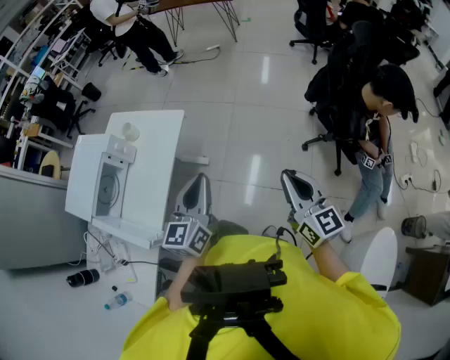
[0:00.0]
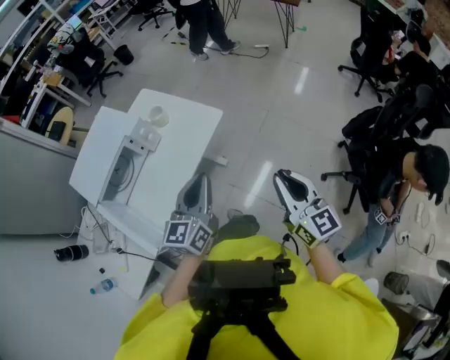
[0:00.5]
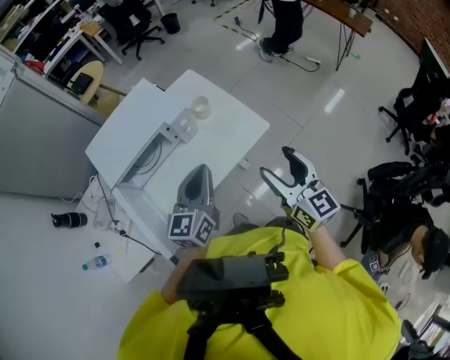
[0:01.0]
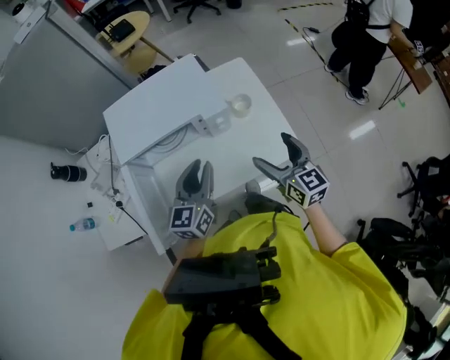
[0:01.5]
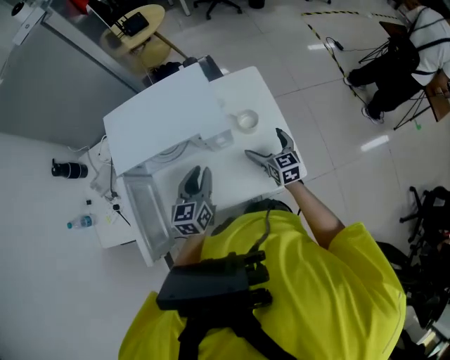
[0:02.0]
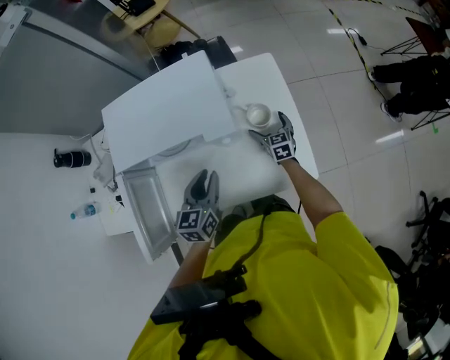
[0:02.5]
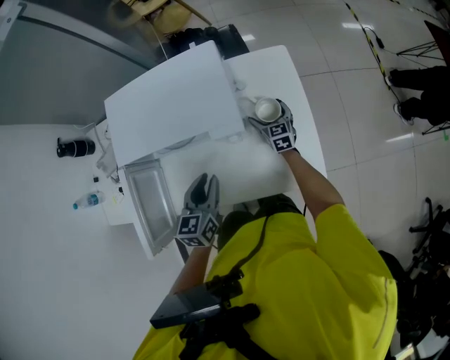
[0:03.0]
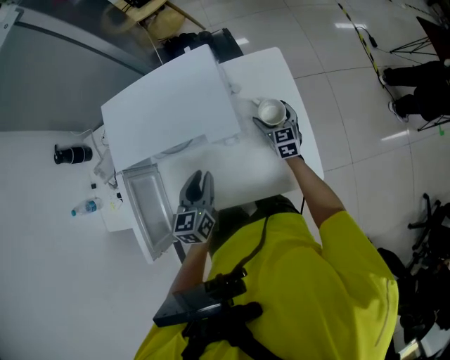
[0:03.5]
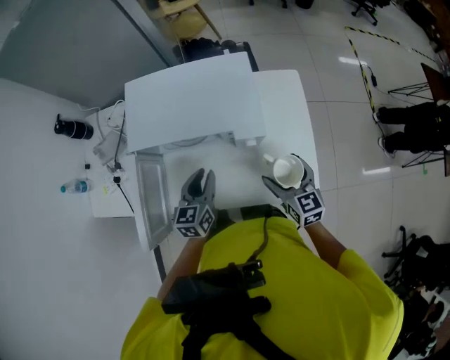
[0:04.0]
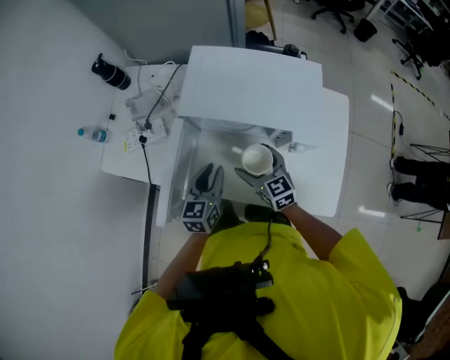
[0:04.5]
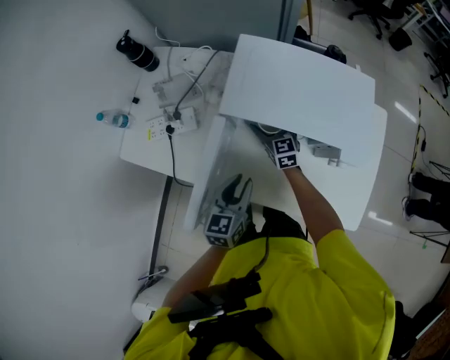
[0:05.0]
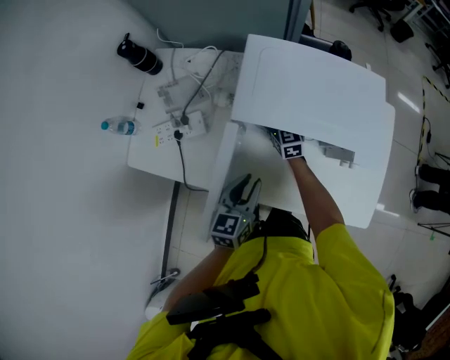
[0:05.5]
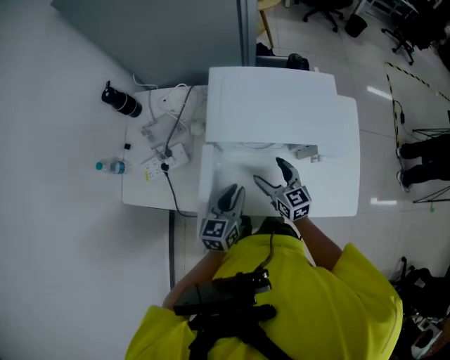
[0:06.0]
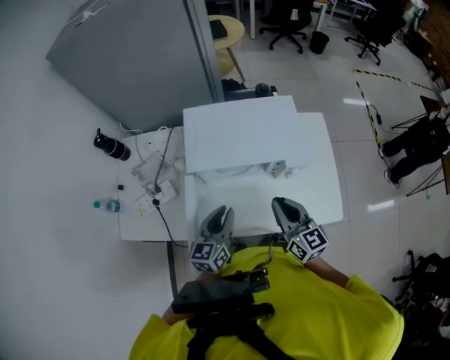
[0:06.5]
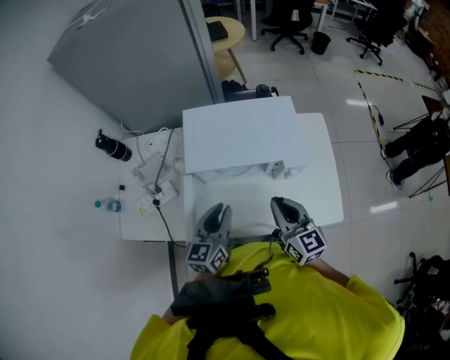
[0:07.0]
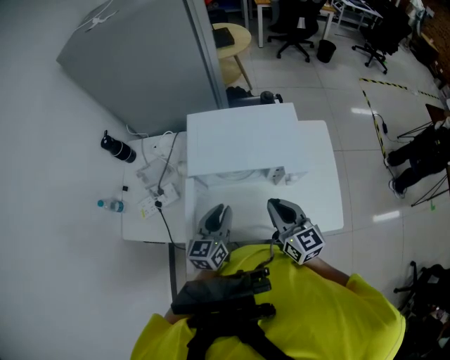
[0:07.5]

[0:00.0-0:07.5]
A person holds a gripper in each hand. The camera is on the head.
0:00.0 to 0:02.0: The two grippers travel together, about 60 cm. The left gripper rotates some 60 degrees, and opens up; the right gripper swivels approximately 60 degrees, and opens.
0:02.0 to 0:04.0: The two grippers go roughly 5 cm to the left. The right gripper reaches some 15 cm downward, then returns.
0:04.0 to 0:05.5: The left gripper shifts roughly 15 cm to the left. Meanwhile the right gripper shifts roughly 50 cm to the left, forward and downward.
0:05.5 to 0:07.5: The right gripper moves upward, backward and to the right, approximately 40 cm, and closes its fingers; the left gripper travels upward by some 10 cm.

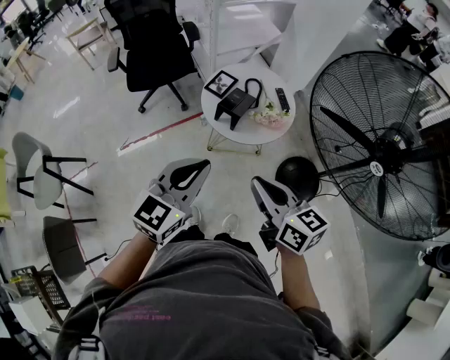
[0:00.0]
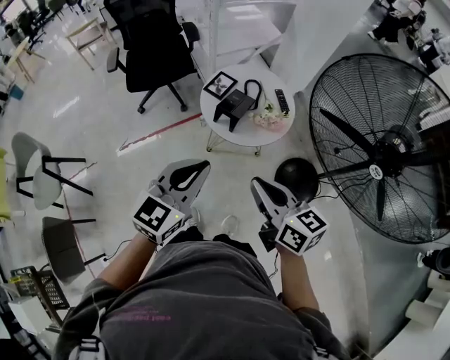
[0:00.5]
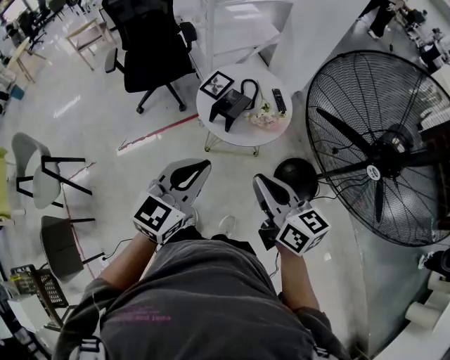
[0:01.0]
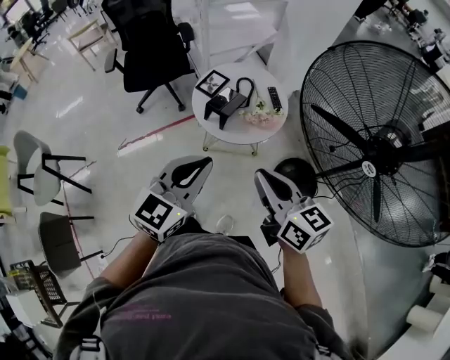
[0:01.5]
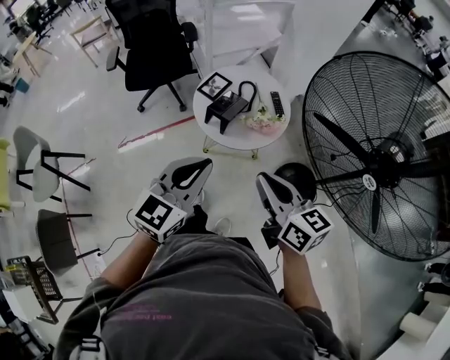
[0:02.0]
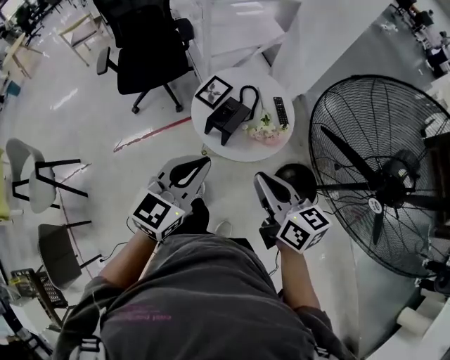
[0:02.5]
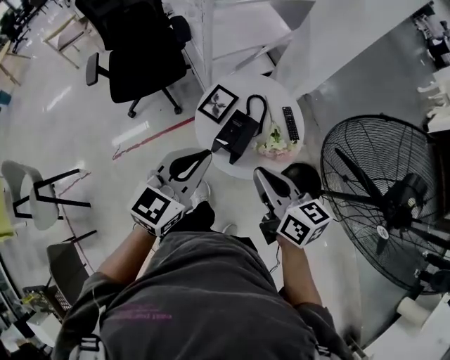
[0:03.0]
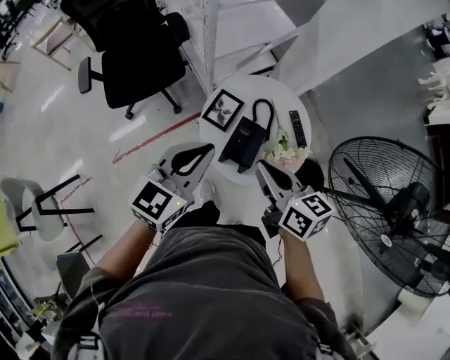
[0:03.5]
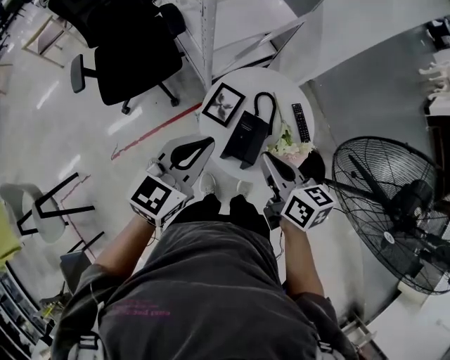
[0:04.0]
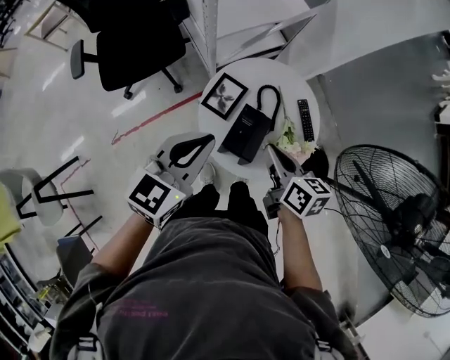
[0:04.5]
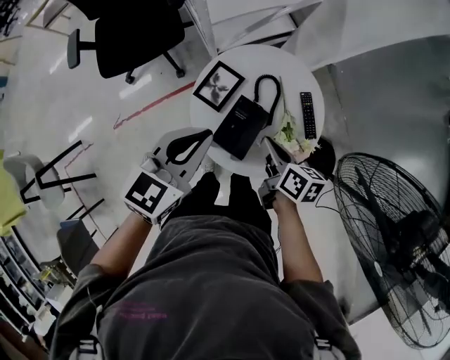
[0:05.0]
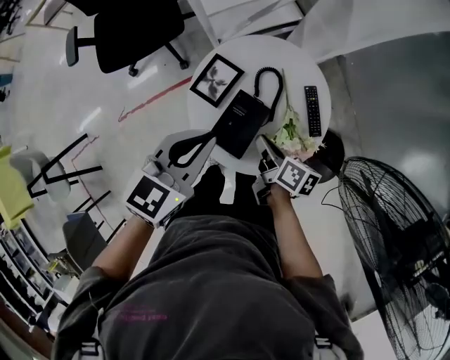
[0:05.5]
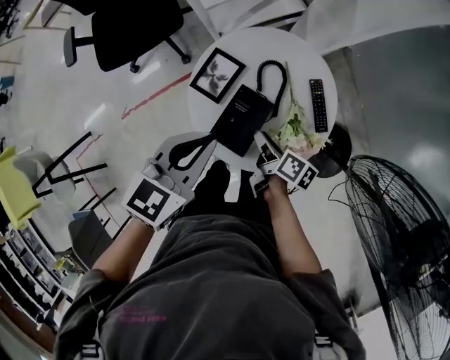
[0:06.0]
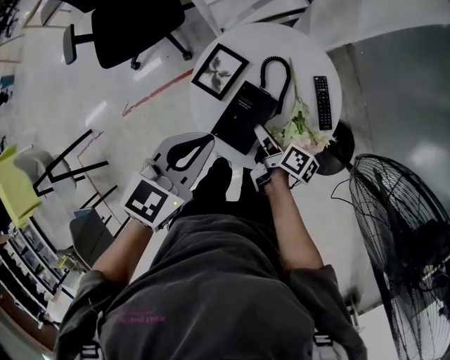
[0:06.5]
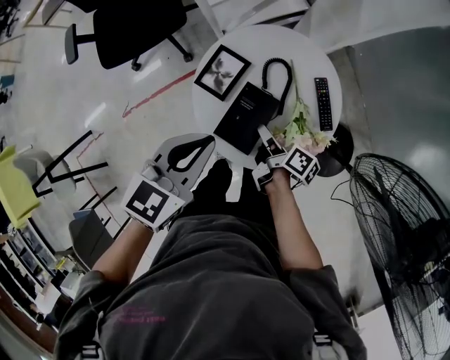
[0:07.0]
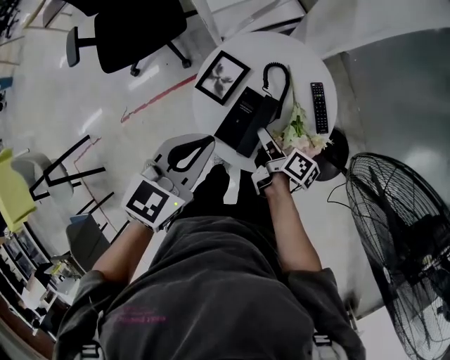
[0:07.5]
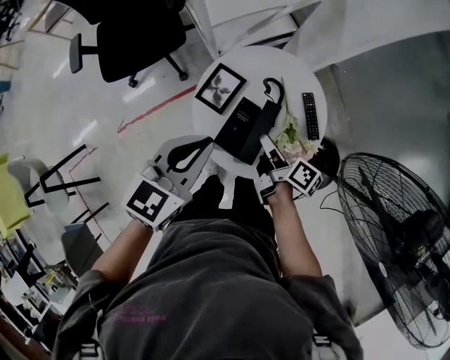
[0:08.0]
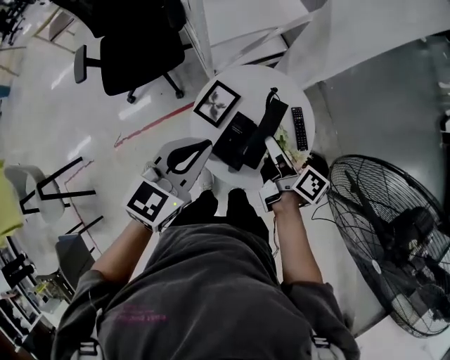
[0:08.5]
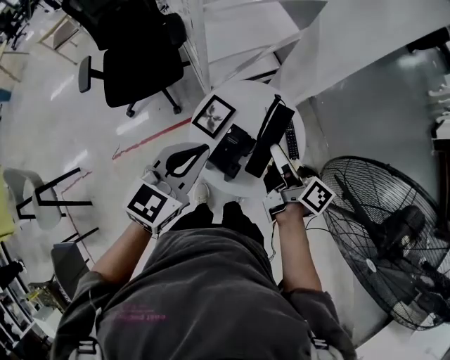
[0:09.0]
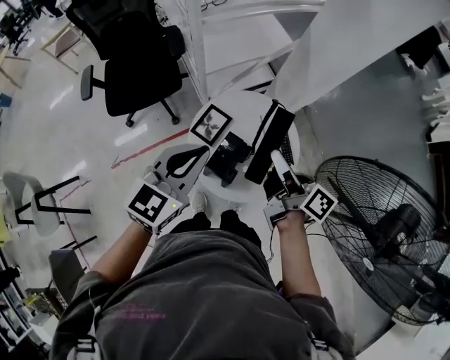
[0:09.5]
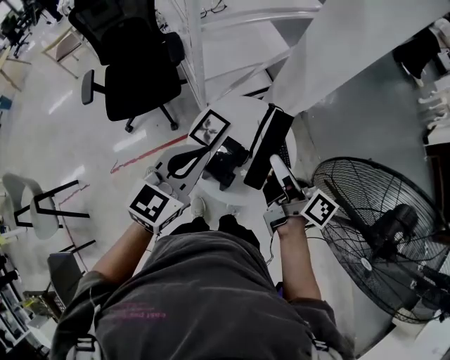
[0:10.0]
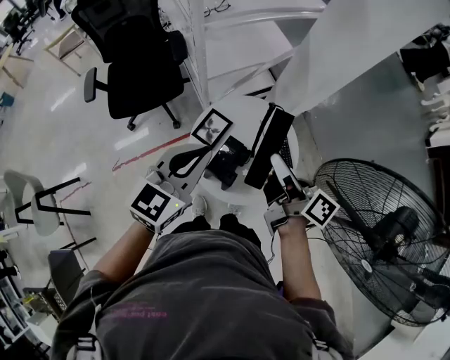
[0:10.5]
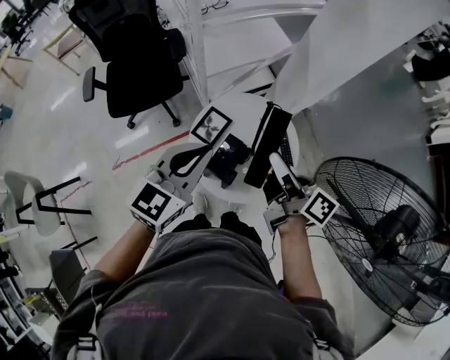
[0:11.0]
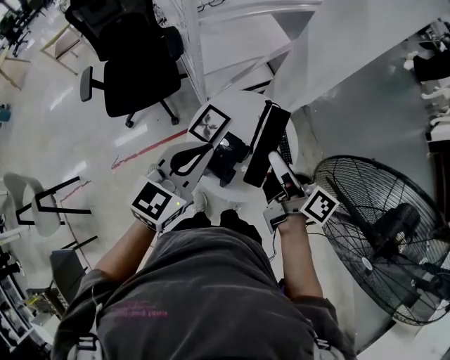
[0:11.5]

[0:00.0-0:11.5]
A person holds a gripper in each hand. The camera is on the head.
0:00.0 to 0:02.0: Both grippers travel together to the right, some 10 cm.
0:02.0 to 0:04.0: The two grippers go approximately 35 cm forward and to the left. The right gripper rotates approximately 20 degrees.
0:04.0 to 0:06.0: The right gripper heads downward, covering approximately 25 cm, and twists approximately 40 degrees clockwise, seen from behind, while the left gripper is displaced downward and to the right by about 15 cm, and turns by some 20 degrees.
0:06.0 to 0:07.5: The grippers move only a little.
0:07.5 to 0:09.5: The left gripper travels upward by roughly 15 cm, and swivels approximately 20 degrees. Meanwhile the right gripper moves upward, roughly 30 cm, and swivels approximately 30 degrees.
0:09.5 to 0:11.5: The grippers stay close to where they were, moving slightly.

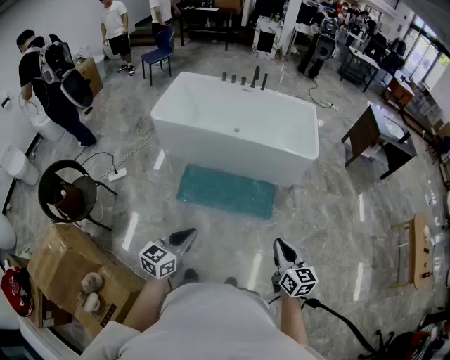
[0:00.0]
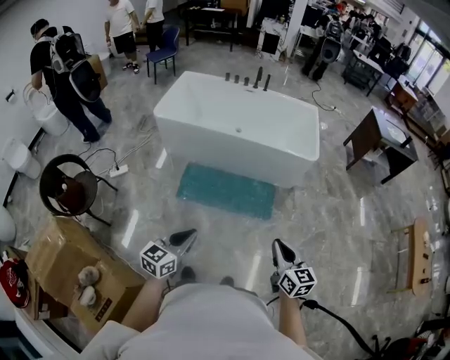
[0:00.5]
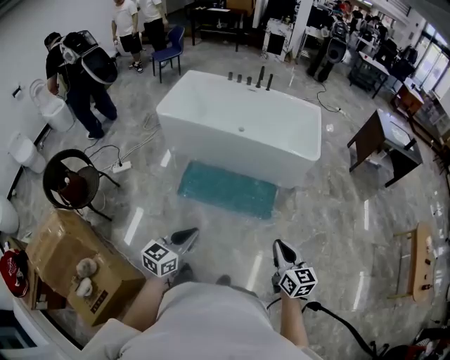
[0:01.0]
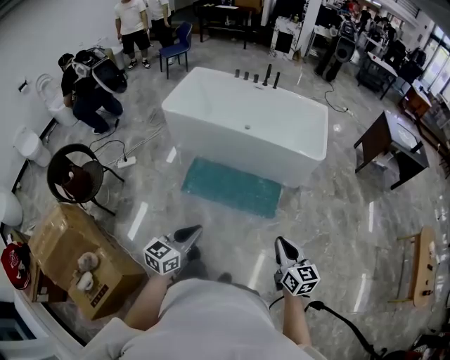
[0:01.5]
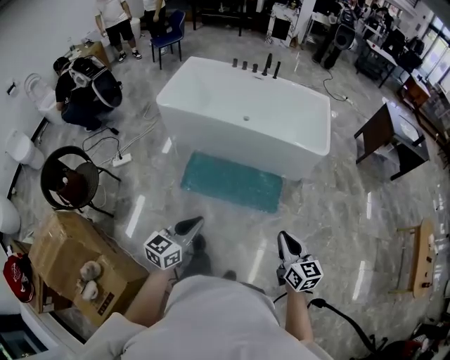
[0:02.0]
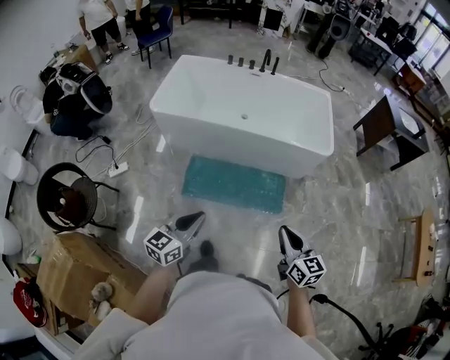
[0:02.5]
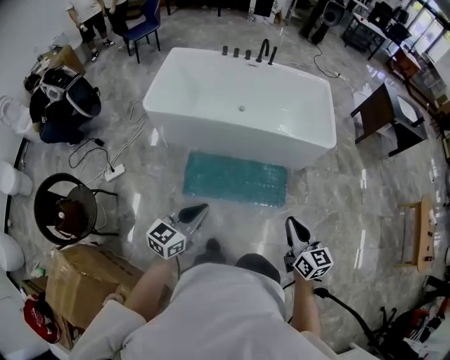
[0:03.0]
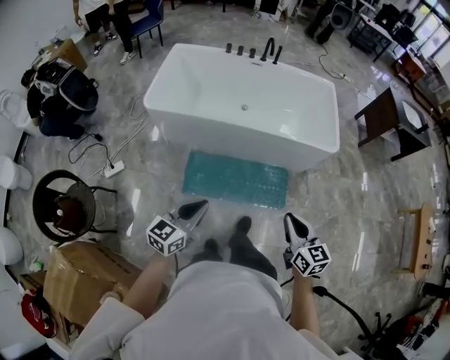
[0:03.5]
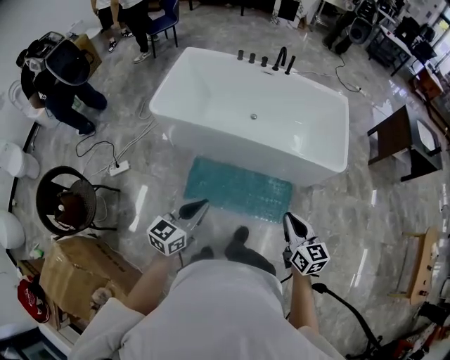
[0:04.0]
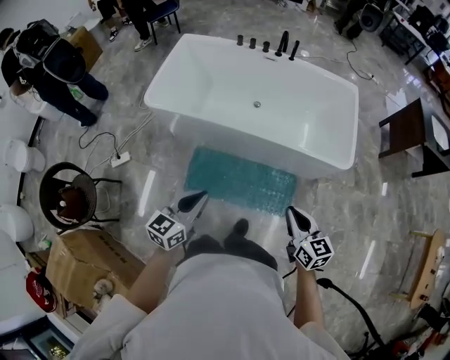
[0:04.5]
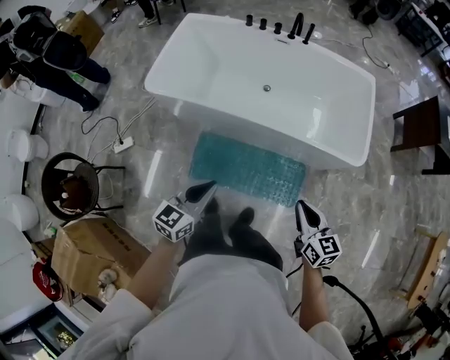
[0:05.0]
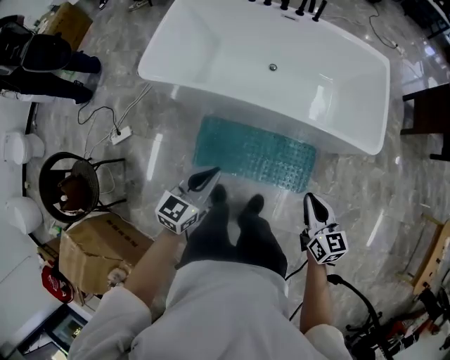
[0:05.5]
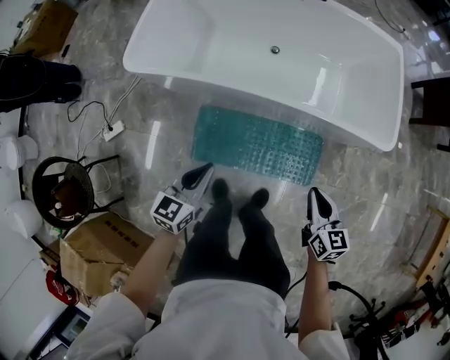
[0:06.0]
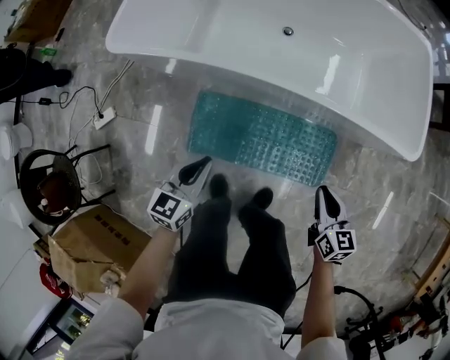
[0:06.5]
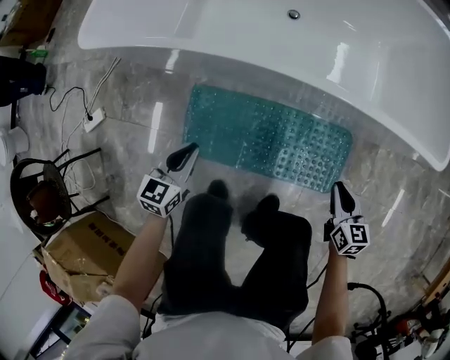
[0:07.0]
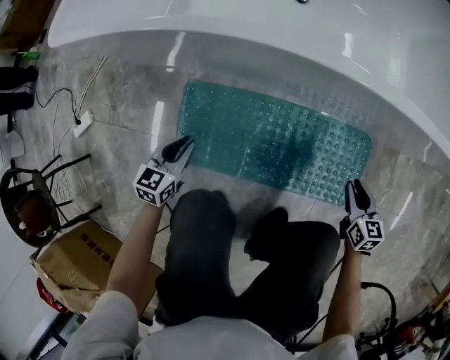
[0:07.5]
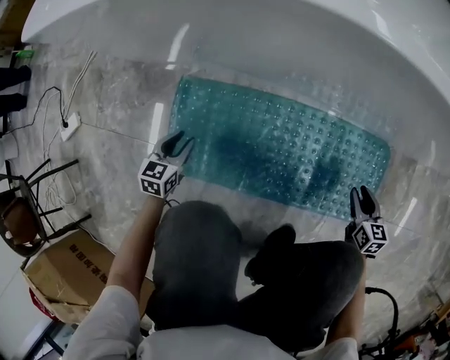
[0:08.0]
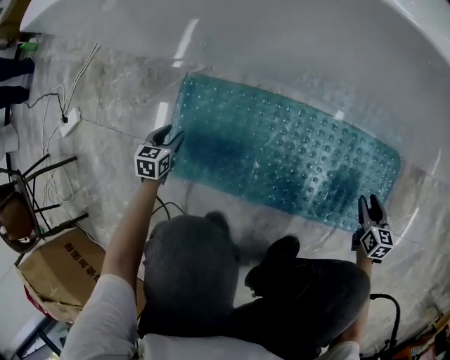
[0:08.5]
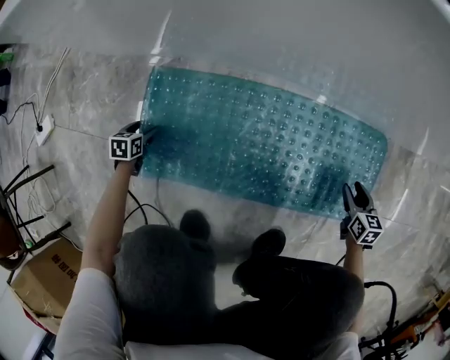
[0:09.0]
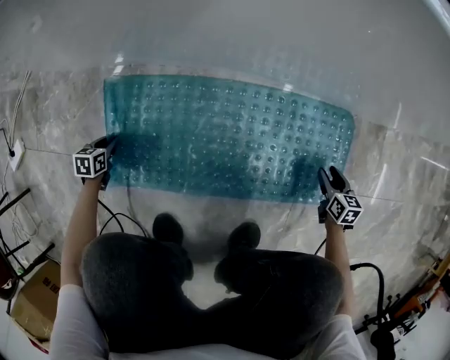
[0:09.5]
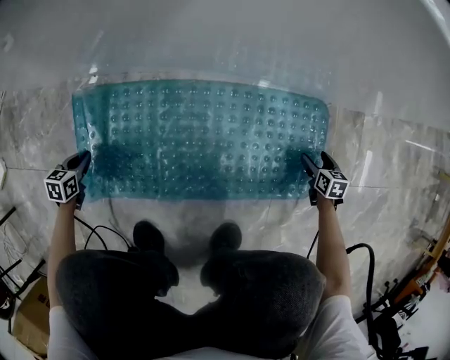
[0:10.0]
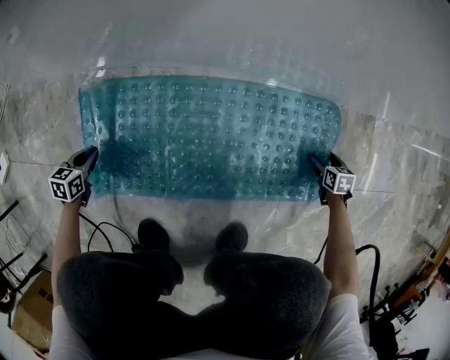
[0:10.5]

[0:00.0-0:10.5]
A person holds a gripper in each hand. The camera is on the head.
0:00.0 to 0:02.0: The two grippers go roughly 10 cm forward.
0:02.0 to 0:04.0: The grippers both shift forward by roughly 35 cm.
0:04.0 to 0:06.5: Both grippers move downward and forward, some 60 cm.
0:06.5 to 0:08.5: Both grippers move downward, approximately 70 cm. The left gripper swivels approximately 30 degrees, and opens. Meanwhile the right gripper opens up.
0:08.5 to 0:10.5: The right gripper heads to the right and downward, covering approximately 25 cm, turns by some 20 degrees, and opens up, while the left gripper travels to the right and downward by some 10 cm, and closes up.
